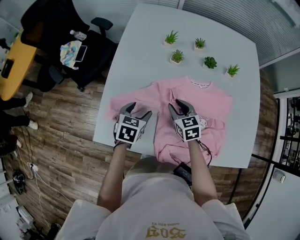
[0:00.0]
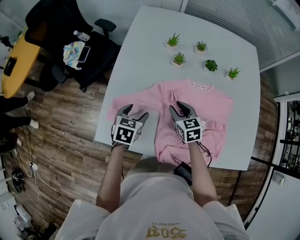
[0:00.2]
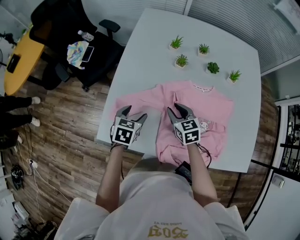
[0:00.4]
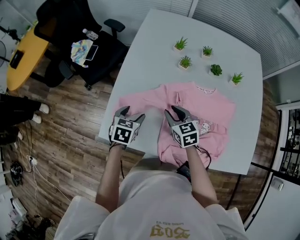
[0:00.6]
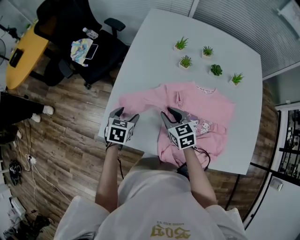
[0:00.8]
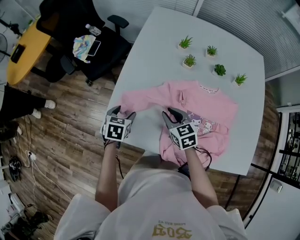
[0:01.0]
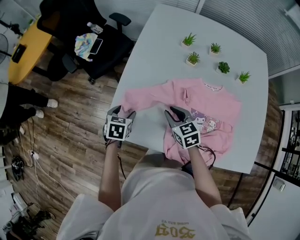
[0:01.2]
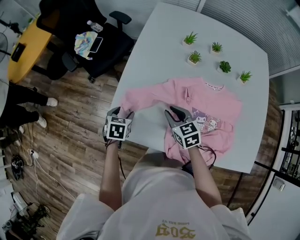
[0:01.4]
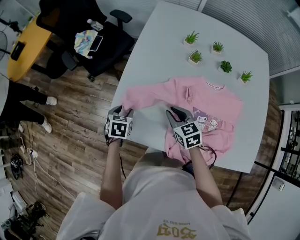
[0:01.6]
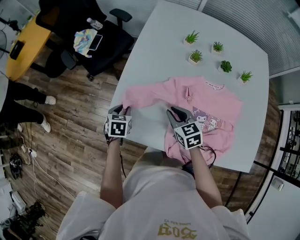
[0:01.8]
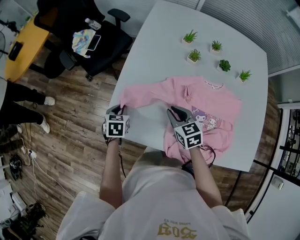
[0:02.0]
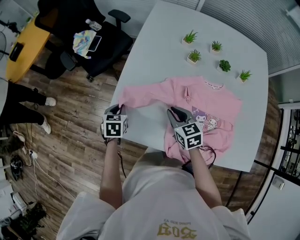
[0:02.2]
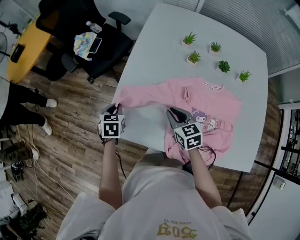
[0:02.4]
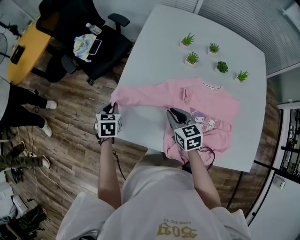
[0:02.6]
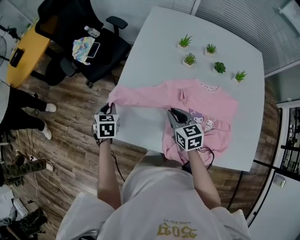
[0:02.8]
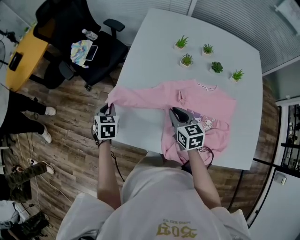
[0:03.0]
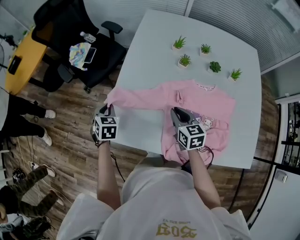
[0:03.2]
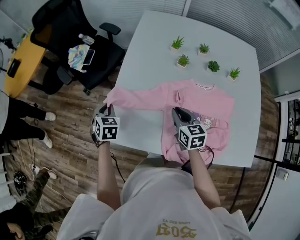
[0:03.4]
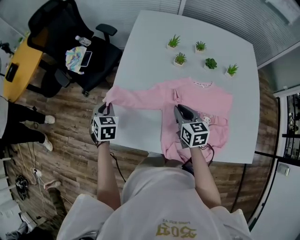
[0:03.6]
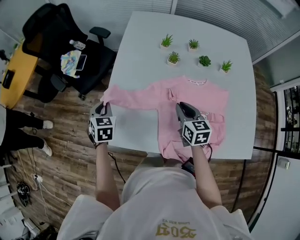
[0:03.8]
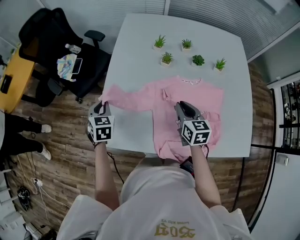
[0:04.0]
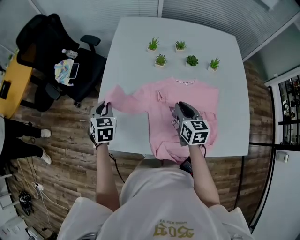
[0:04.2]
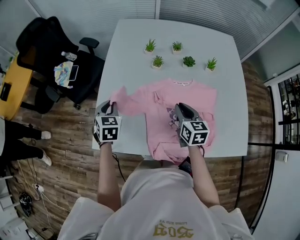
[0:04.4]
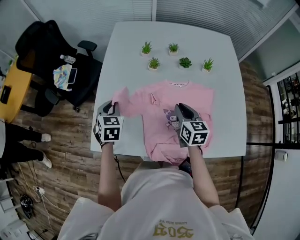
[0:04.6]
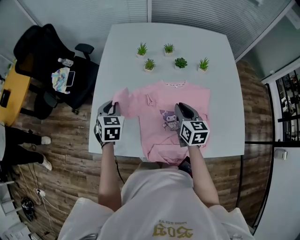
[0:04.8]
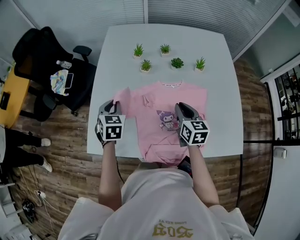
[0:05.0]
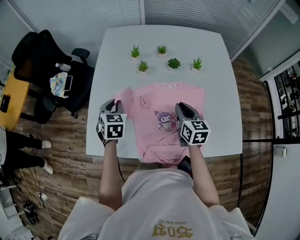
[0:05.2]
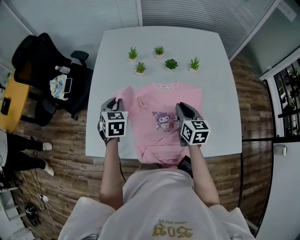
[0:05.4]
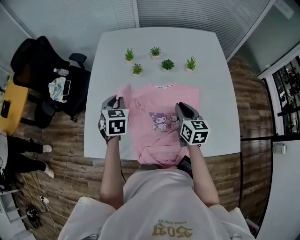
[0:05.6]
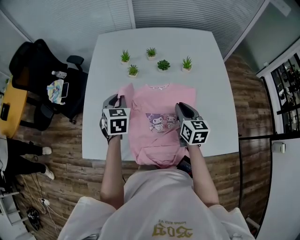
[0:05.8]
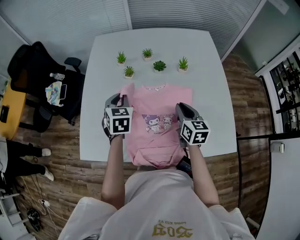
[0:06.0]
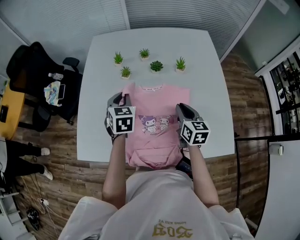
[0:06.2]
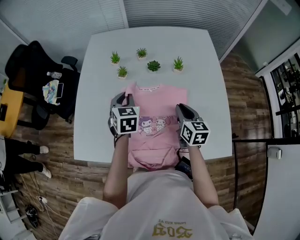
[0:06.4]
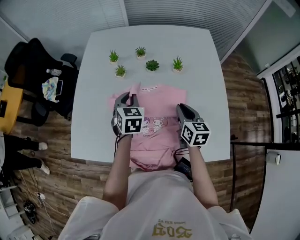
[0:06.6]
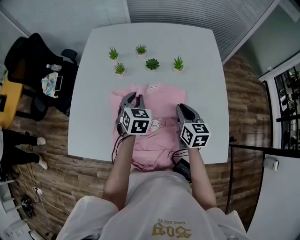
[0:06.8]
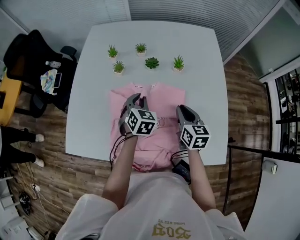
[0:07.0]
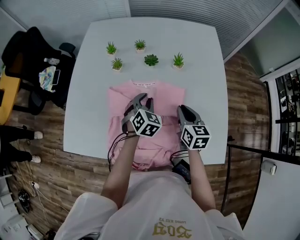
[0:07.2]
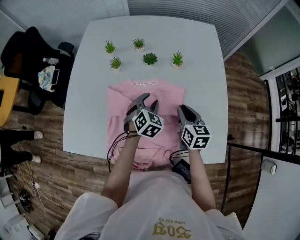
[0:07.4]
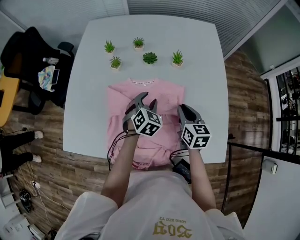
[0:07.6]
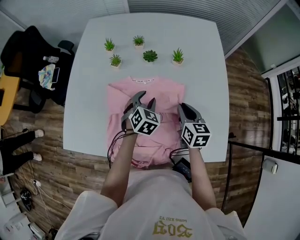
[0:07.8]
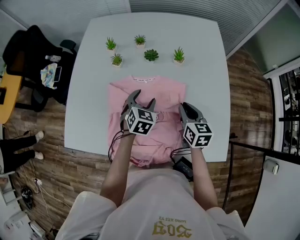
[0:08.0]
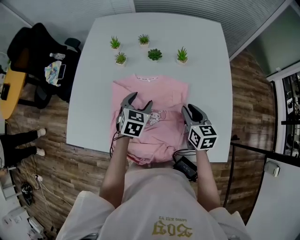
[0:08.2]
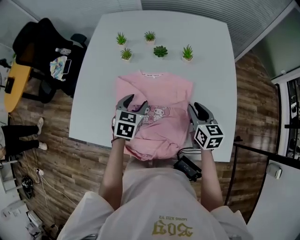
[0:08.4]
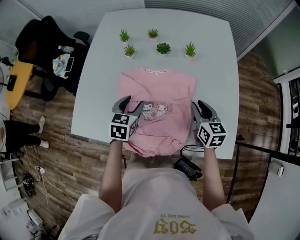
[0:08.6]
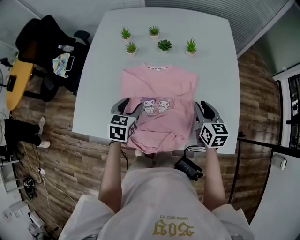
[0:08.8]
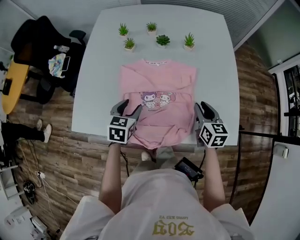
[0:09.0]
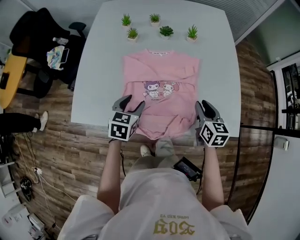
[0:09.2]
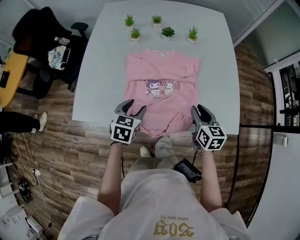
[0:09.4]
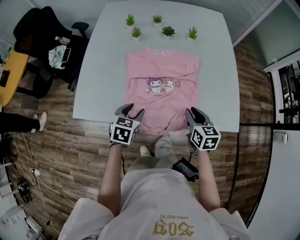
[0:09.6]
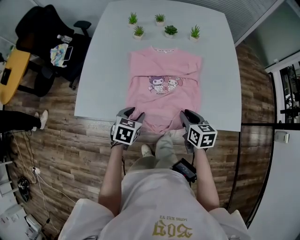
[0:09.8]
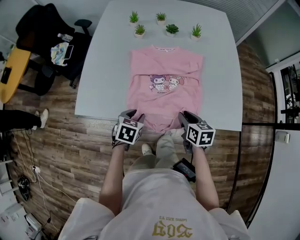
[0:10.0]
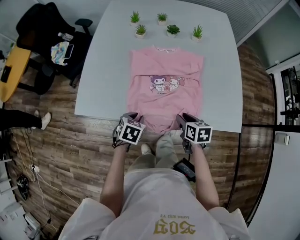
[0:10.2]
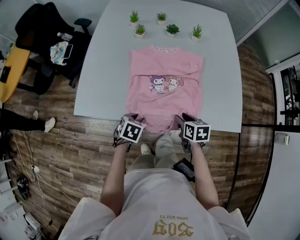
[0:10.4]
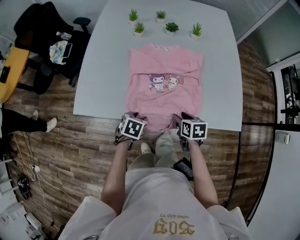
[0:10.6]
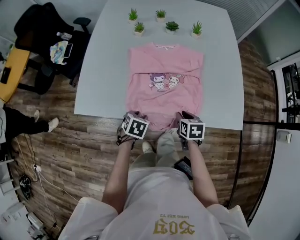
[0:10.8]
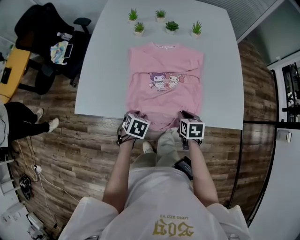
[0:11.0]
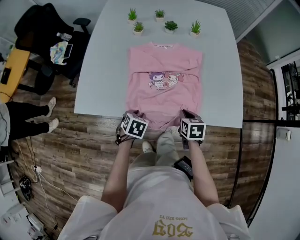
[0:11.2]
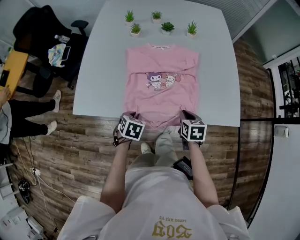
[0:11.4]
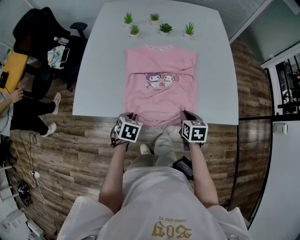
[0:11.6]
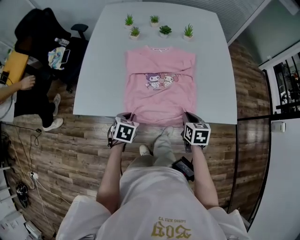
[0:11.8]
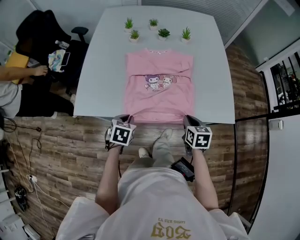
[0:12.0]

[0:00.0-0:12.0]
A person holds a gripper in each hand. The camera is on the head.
0:00.0 to 0:01.6: The right gripper shifts roughly 10 cm to the left, while the left gripper travels to the left by some 15 cm.
0:01.6 to 0:03.0: The left gripper heads upward and forward, covering roughly 10 cm, and closes its fingers.
0:03.0 to 0:04.4: The left gripper goes some 15 cm to the right and upward. The right gripper shifts about 15 cm to the right, and changes its angle by about 20 degrees.
0:04.4 to 0:06.0: Both grippers travel together to the right, some 20 cm.
0:06.0 to 0:07.6: The left gripper heads to the right and downward, covering about 25 cm, turns by approximately 20 degrees, and opens its fingers. The right gripper is displaced to the right and downward by about 10 cm.
0:07.6 to 0:09.0: The right gripper is displaced backward by roughly 10 cm, while the left gripper is displaced to the left and backward by about 20 cm, and rotates approximately 30 degrees.
0:09.0 to 0:10.4: The right gripper moves backward, to the left and downward, roughly 20 cm, and turns by roughly 30 degrees. Meanwhile the left gripper is displaced backward and downward by some 20 cm, and changes its angle by some 20 degrees.
0:10.4 to 0:12.0: The left gripper moves some 5 cm. The right gripper shifts some 5 cm to the right, and closes.

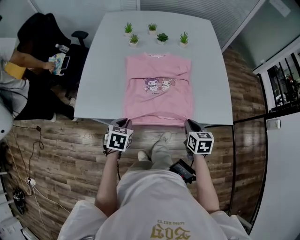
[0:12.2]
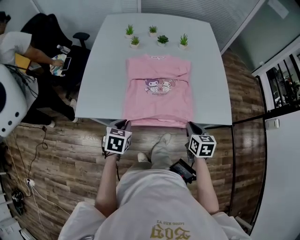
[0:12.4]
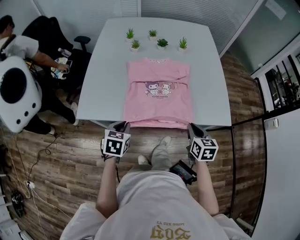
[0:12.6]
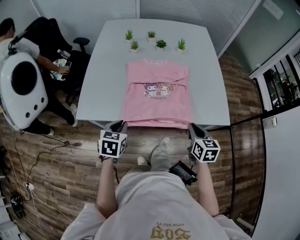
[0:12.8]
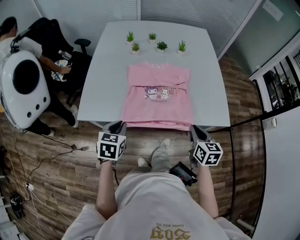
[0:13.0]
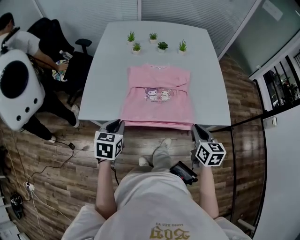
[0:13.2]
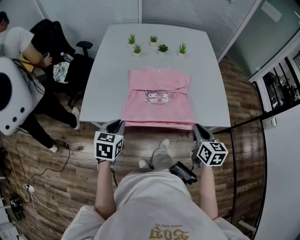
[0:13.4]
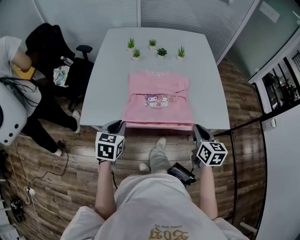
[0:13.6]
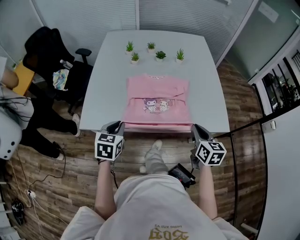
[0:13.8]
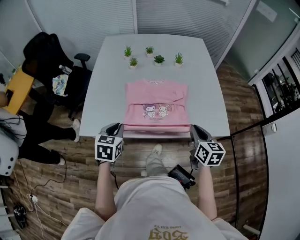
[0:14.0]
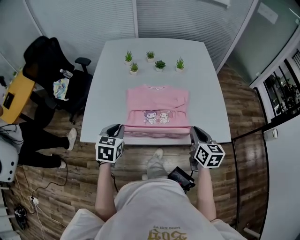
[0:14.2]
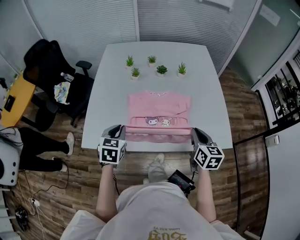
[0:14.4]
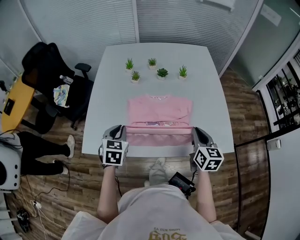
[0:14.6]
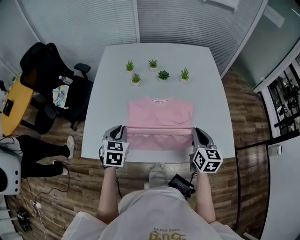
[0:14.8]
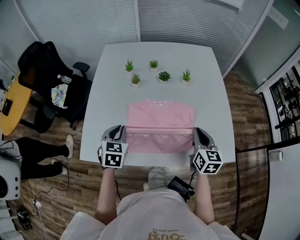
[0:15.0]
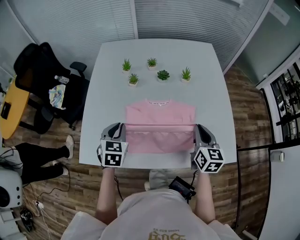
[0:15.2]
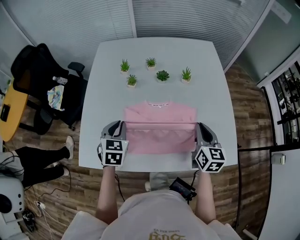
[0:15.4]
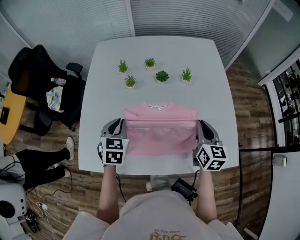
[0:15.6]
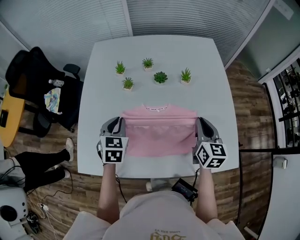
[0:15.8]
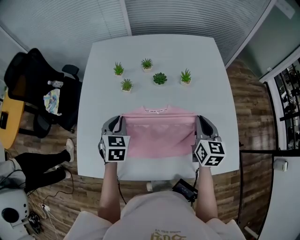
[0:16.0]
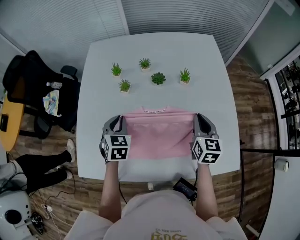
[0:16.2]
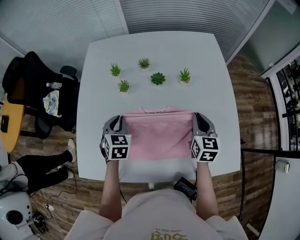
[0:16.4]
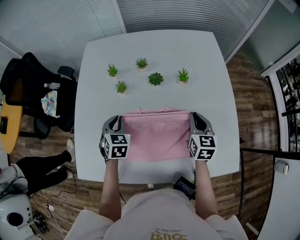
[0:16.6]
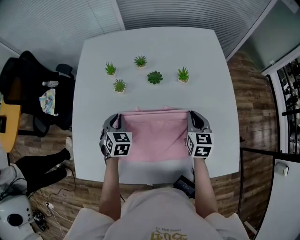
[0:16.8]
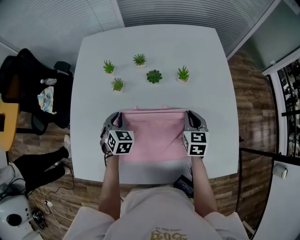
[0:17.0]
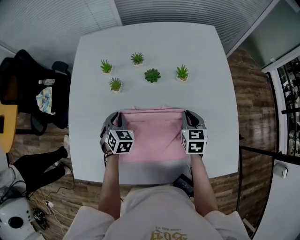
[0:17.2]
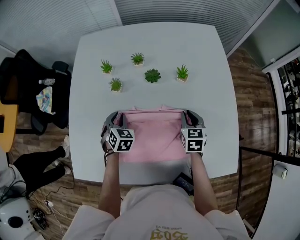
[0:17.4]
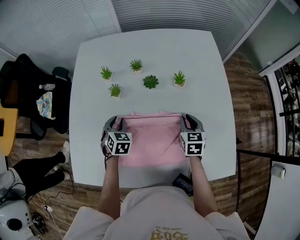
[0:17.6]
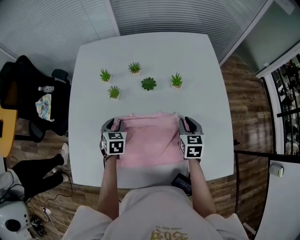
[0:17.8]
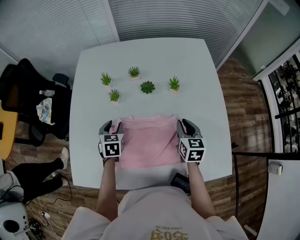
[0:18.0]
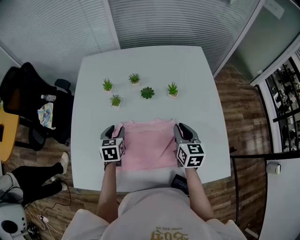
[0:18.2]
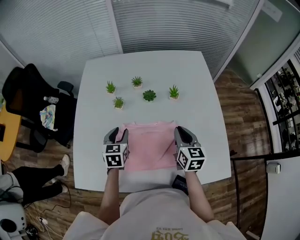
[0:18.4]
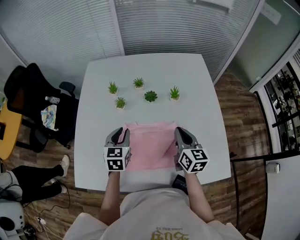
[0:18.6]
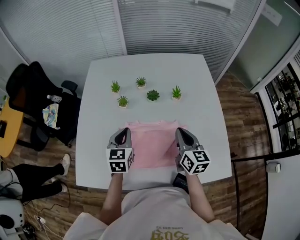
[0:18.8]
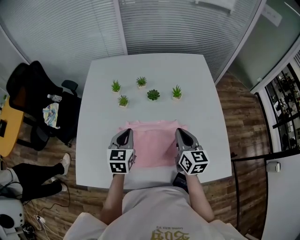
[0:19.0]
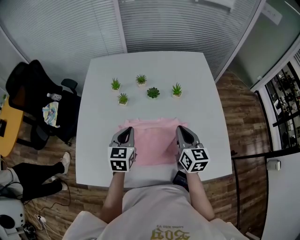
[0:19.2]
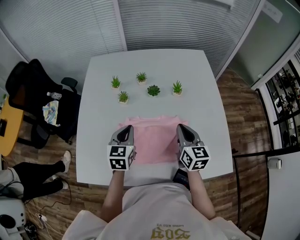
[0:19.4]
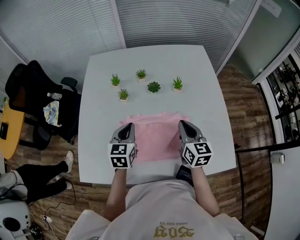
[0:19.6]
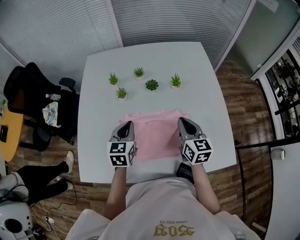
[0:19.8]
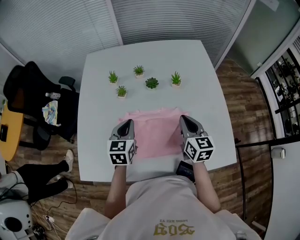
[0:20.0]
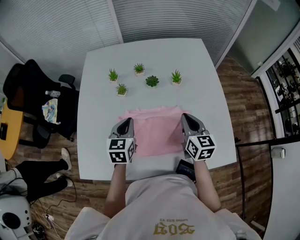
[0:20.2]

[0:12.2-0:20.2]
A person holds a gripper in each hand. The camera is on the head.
0:12.2 to 0:13.8: The grippers both shift upward by some 10 cm.
0:13.8 to 0:15.4: Both grippers travel together forward, roughly 25 cm.
0:15.4 to 0:17.0: Both grippers travel together forward and downward, about 20 cm.
0:17.0 to 0:18.6: The left gripper travels upward by about 10 cm, and changes its angle by about 30 degrees, while the right gripper shifts roughly 10 cm upward and backward, and changes its angle by roughly 20 degrees.
0:18.6 to 0:20.2: The grippers stay close to where they were, moving slightly.

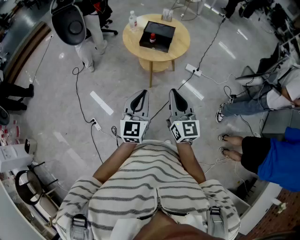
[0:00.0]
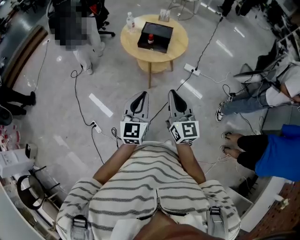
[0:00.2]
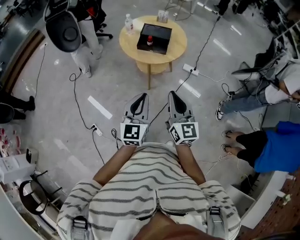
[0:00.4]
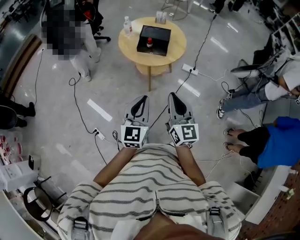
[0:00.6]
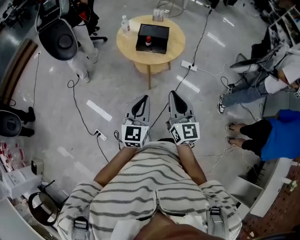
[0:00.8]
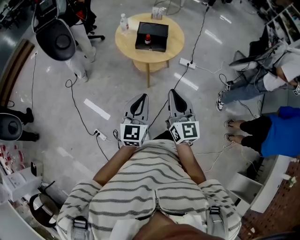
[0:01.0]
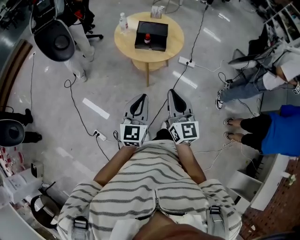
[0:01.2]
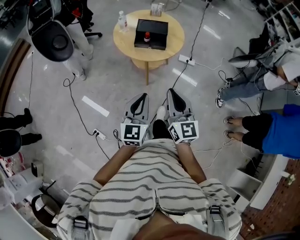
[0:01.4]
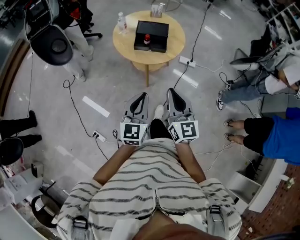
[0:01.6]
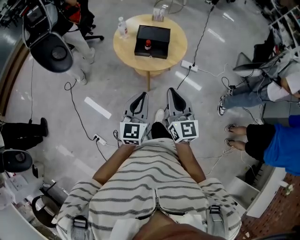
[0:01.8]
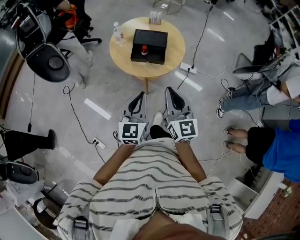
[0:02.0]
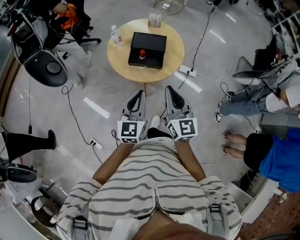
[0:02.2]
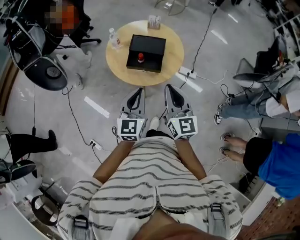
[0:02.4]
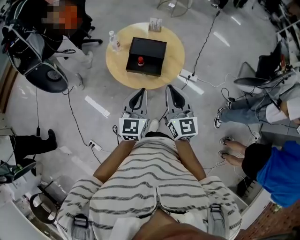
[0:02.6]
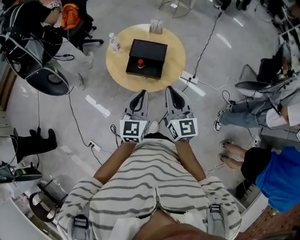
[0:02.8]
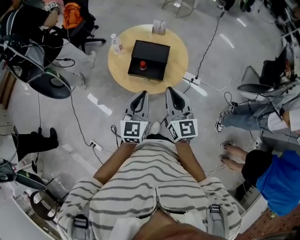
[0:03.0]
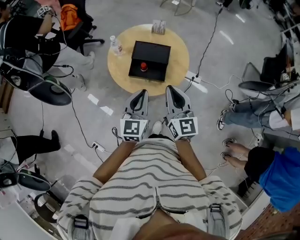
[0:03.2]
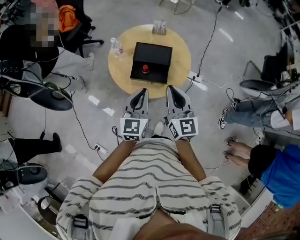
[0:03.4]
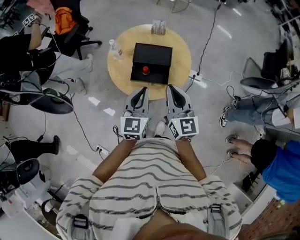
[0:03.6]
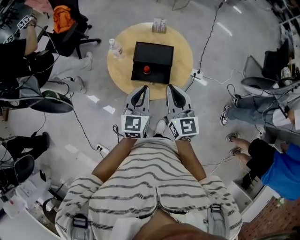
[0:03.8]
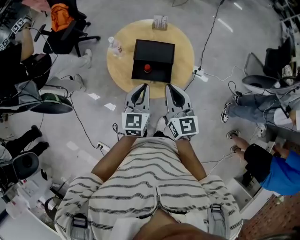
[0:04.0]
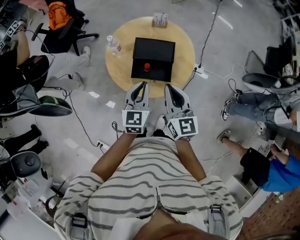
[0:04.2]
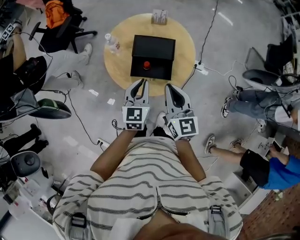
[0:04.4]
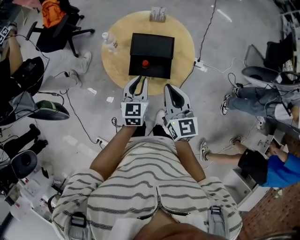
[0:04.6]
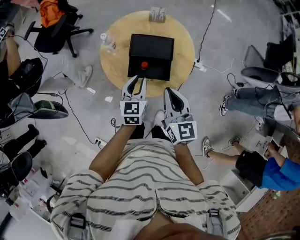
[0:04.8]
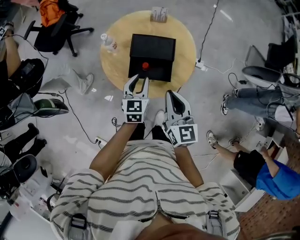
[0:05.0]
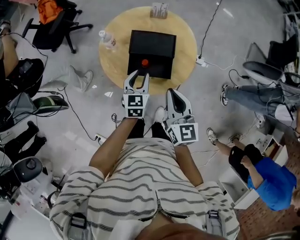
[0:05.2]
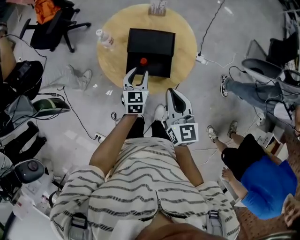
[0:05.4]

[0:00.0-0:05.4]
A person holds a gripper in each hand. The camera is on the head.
0:00.0 to 0:01.4: Both grippers travel together to the left, some 10 cm.
0:01.4 to 0:02.8: The two grippers go about 30 cm forward.
0:02.8 to 0:04.0: The right gripper moves forward and to the left, about 10 cm. Meanwhile the left gripper is displaced forward and downward by roughly 15 cm.
0:04.0 to 0:05.4: The right gripper travels downward by about 5 cm, while the left gripper shifts approximately 15 cm downward and forward, and opens its fingers.
